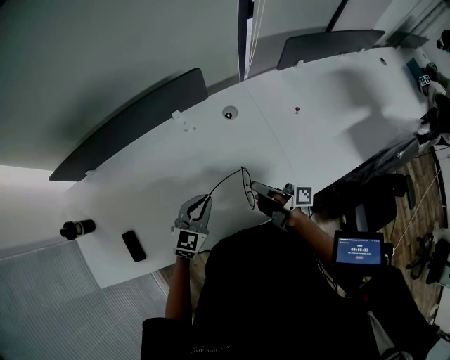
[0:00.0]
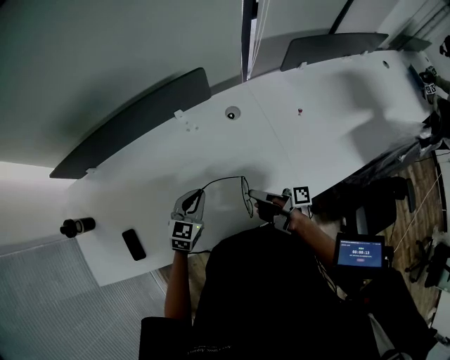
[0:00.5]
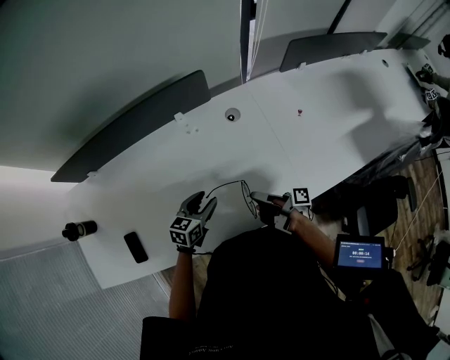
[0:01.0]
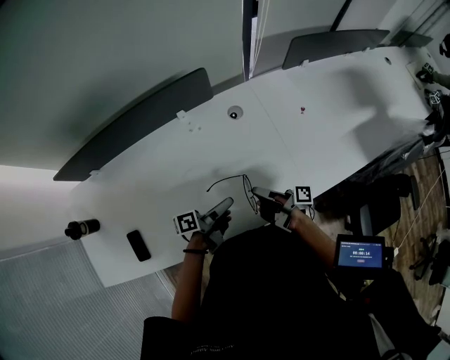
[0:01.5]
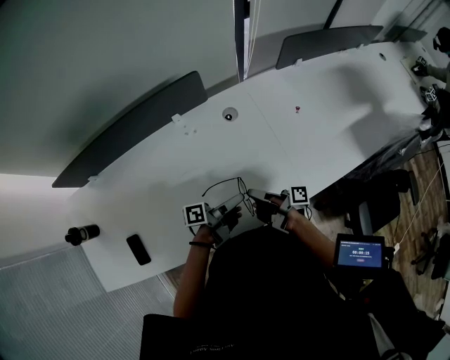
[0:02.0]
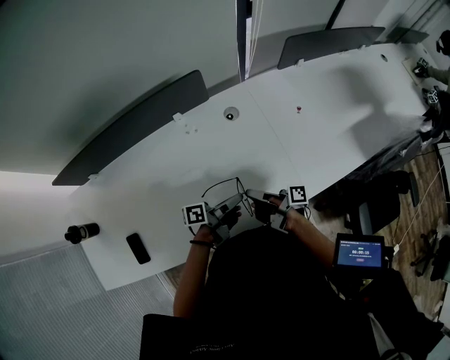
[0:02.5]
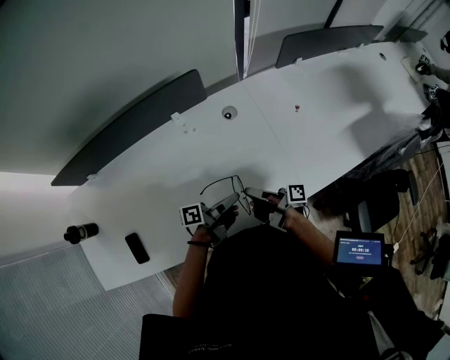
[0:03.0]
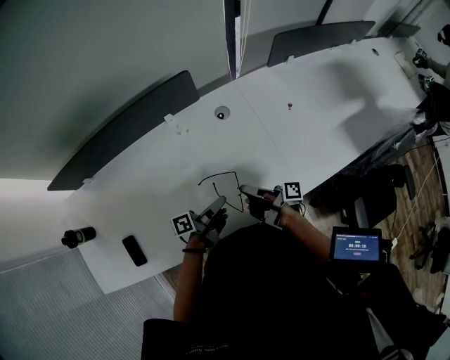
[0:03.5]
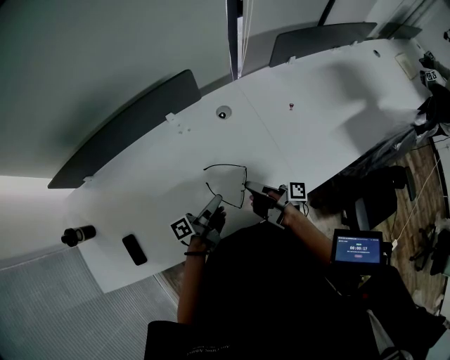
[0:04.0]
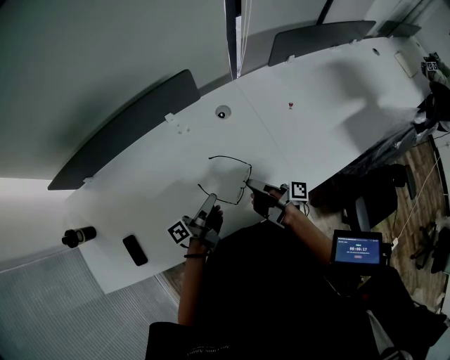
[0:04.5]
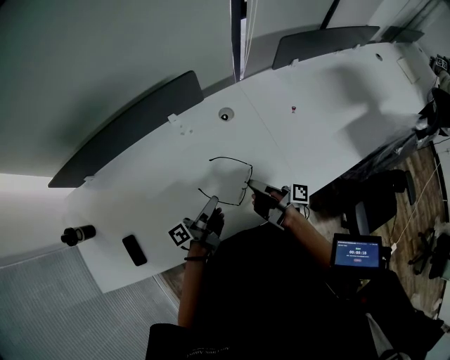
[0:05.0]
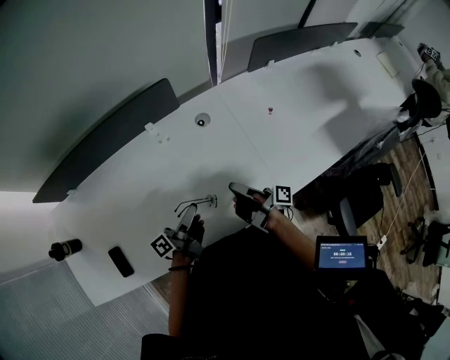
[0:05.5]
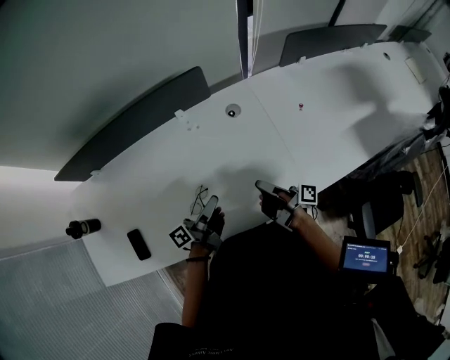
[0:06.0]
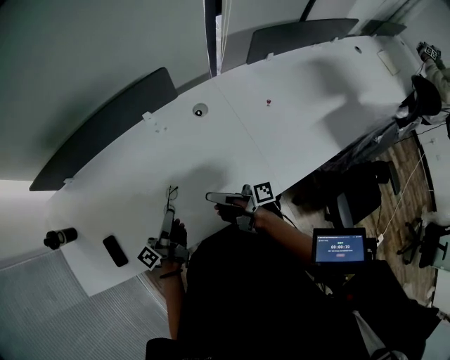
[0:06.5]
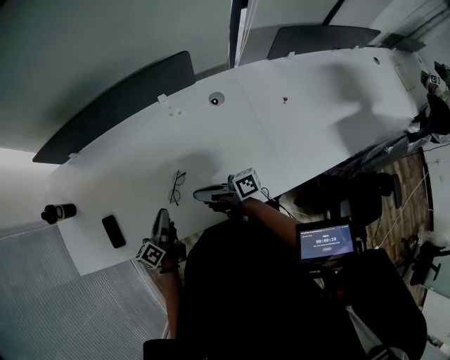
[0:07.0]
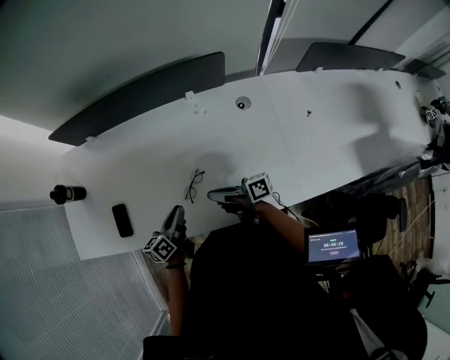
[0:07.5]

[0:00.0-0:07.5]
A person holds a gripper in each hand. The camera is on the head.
0:00.0 to 0:02.0: The left gripper goes roughly 10 cm to the right, rotates around the line of its fingers by some 90 degrees, counterclockwise from behind, and opens up.
0:02.0 to 0:04.0: The left gripper moves to the left, some 5 cm, and closes up.
0:04.0 to 0:05.5: The left gripper opens.
0:05.5 to 0:07.5: The right gripper moves approximately 20 cm, and turns by some 50 degrees. Meanwhile the left gripper ends up roughly 20 cm from where it was, turns by roughly 40 degrees, and closes its fingers.

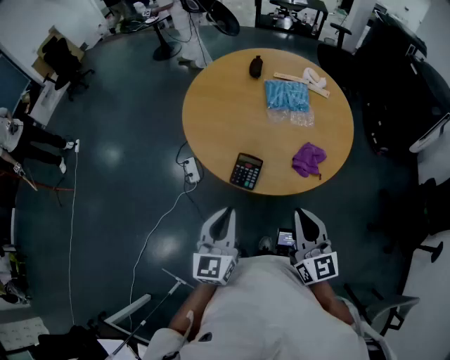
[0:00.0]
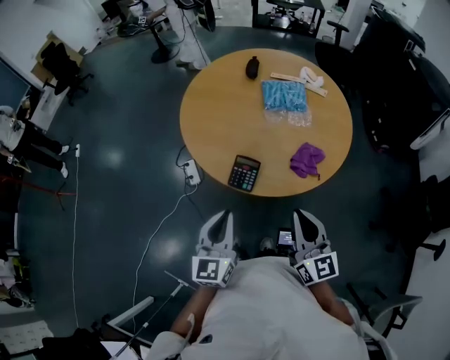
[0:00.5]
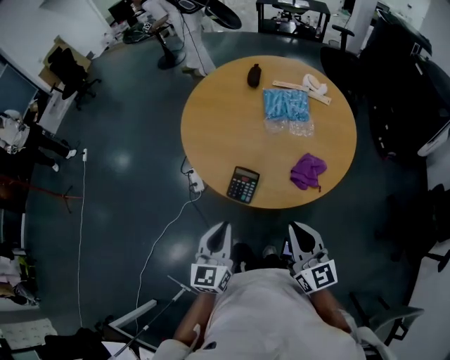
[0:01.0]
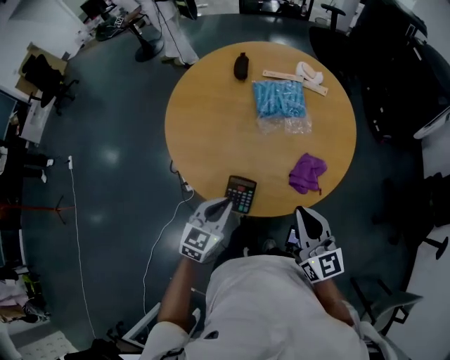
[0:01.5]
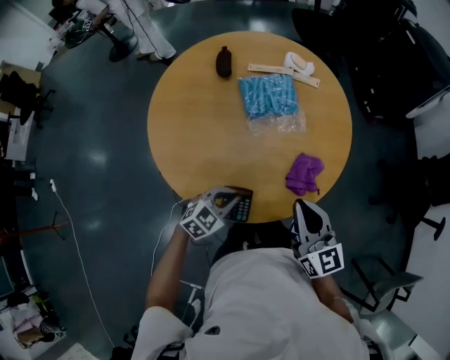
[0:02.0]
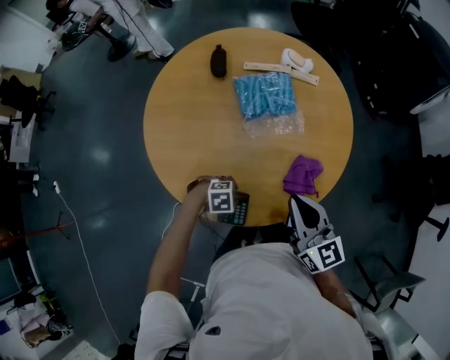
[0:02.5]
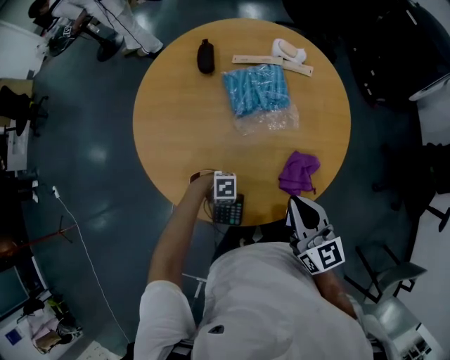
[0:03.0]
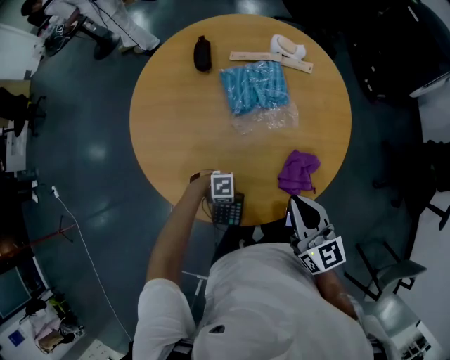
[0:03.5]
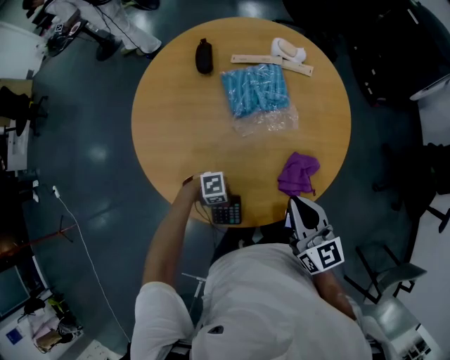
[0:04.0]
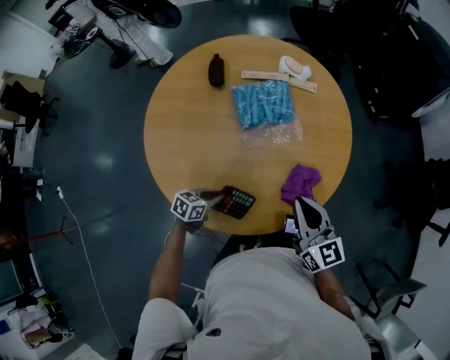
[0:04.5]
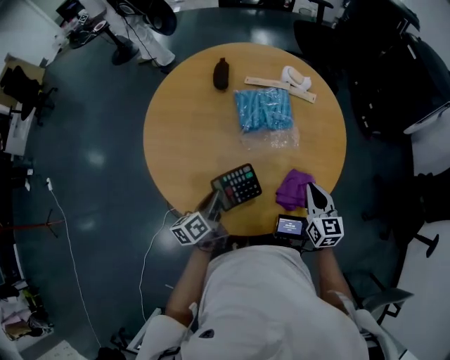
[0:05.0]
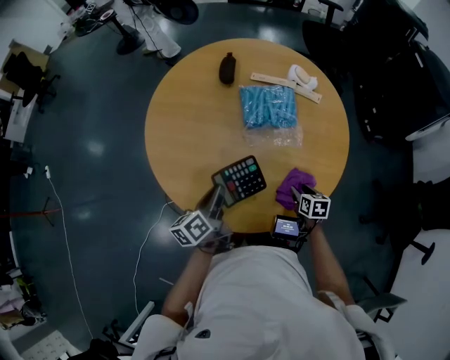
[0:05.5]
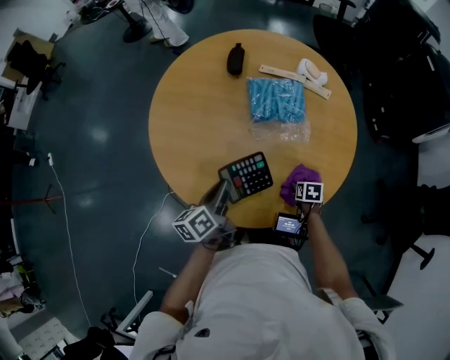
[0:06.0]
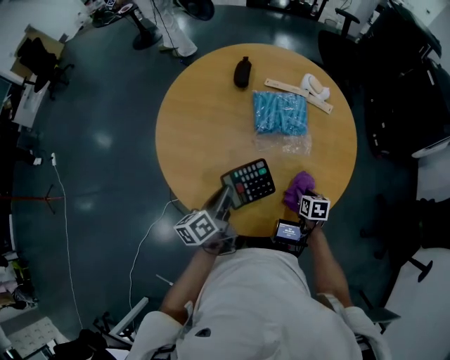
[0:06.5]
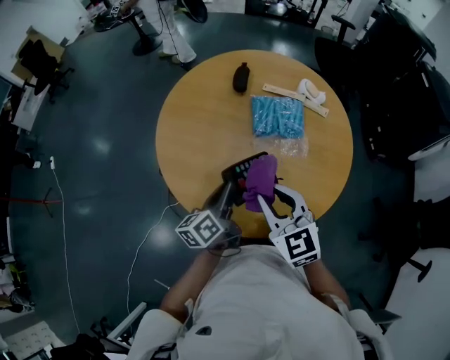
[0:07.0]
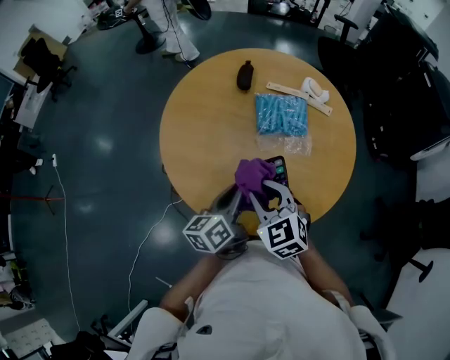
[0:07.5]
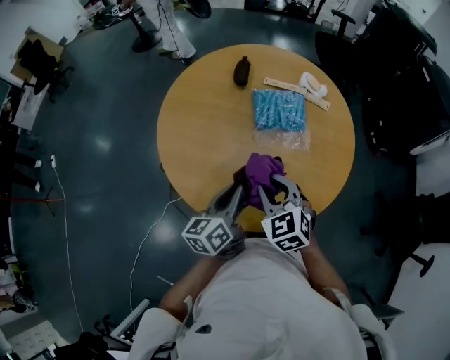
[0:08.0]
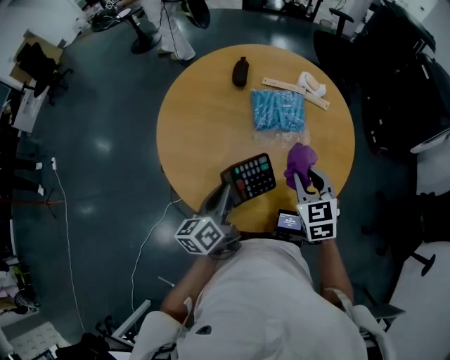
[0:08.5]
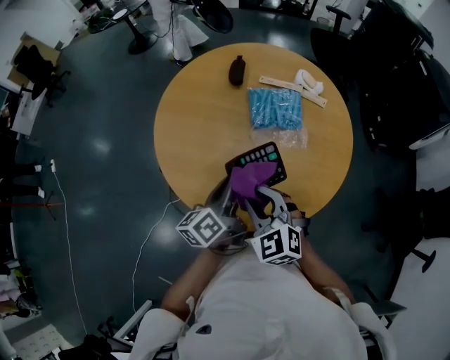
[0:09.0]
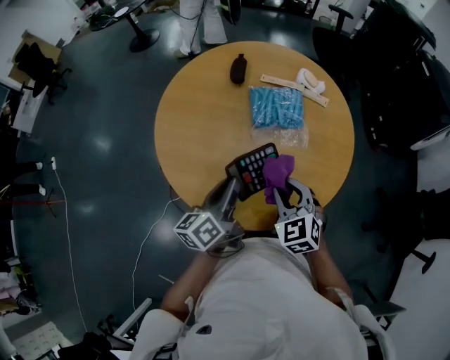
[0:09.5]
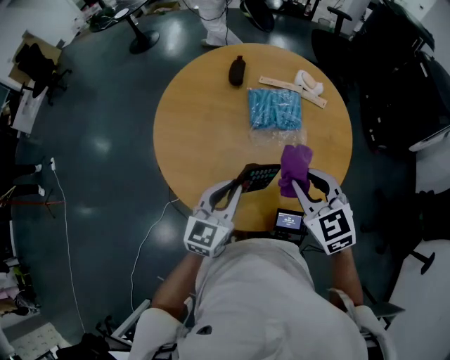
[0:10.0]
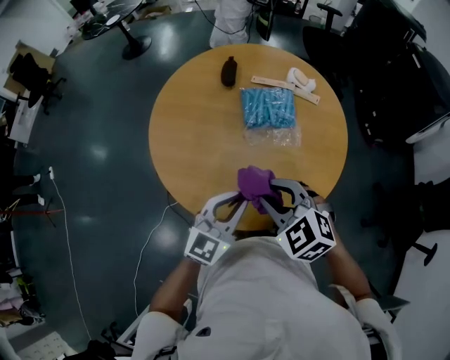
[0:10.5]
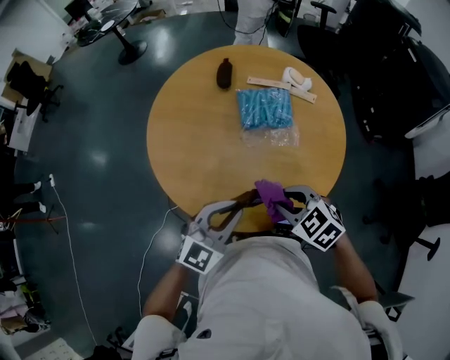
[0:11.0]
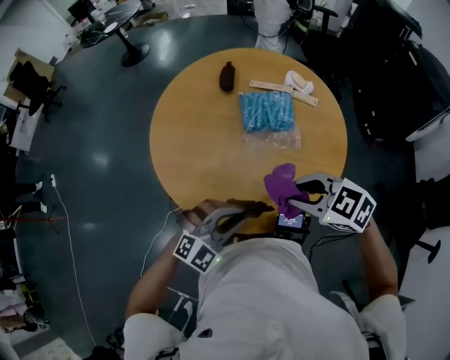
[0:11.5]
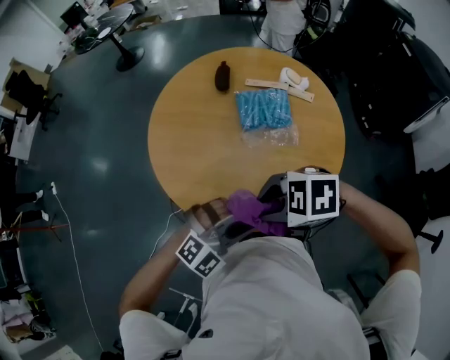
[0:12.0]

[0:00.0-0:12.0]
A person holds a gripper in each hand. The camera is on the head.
0:00.0 to 0:02.0: The right gripper moves some 20 cm. Meanwhile the left gripper changes place by about 30 cm, and tilts its fingers approximately 30 degrees downward.
0:02.0 to 0:04.0: The left gripper heads downward, covering about 15 cm, rotates about 50 degrees, and opens, then closes again. Meanwhile the right gripper moves about 10 cm.
0:04.0 to 0:06.0: The left gripper goes roughly 15 cm upward, and tilts its fingers roughly 30 degrees upward. The right gripper goes approximately 30 cm downward, angles its fingers downward, by about 60 degrees, and opens.
0:06.0 to 0:08.0: The right gripper heads upward and to the left, covering some 35 cm, twists about 50 degrees counterclockwise, seen from behind, and closes its fingers. The left gripper is displaced upward by approximately 10 cm.
0:08.0 to 0:10.0: The left gripper twists about 40 degrees clockwise, seen from behind, while the right gripper goes left and right, about 15 cm each way, reversing 2 times.
0:10.0 to 0:12.0: The left gripper moves some 15 cm, and rolls clockwise, seen from behind, by some 60 degrees; the right gripper moves some 15 cm, and turns by about 60 degrees.

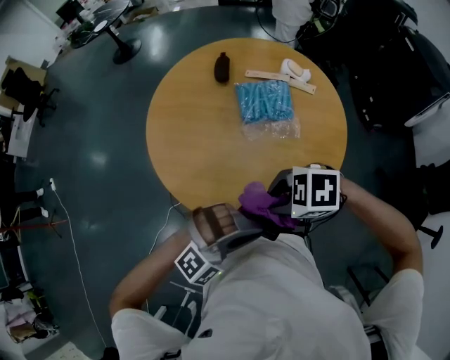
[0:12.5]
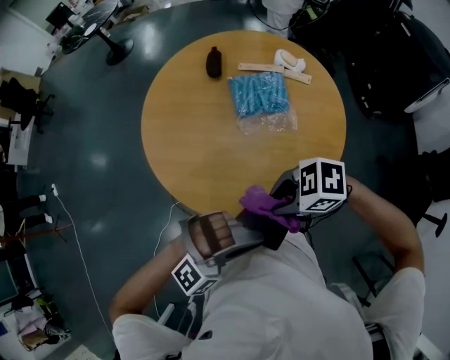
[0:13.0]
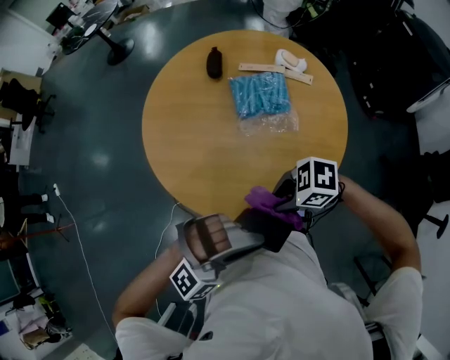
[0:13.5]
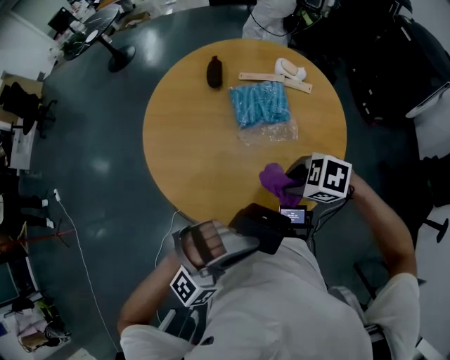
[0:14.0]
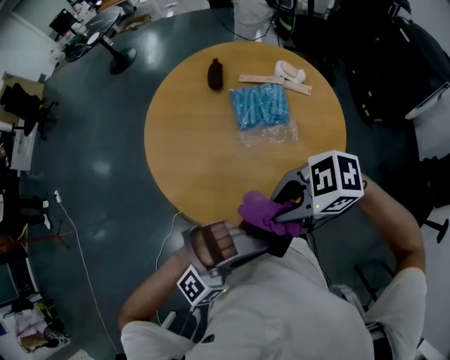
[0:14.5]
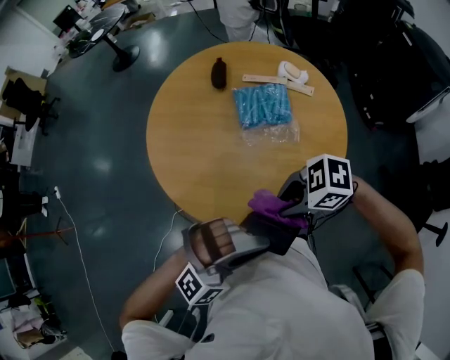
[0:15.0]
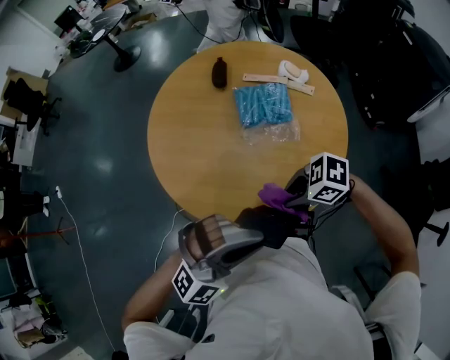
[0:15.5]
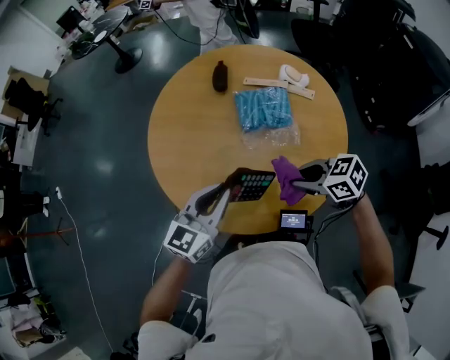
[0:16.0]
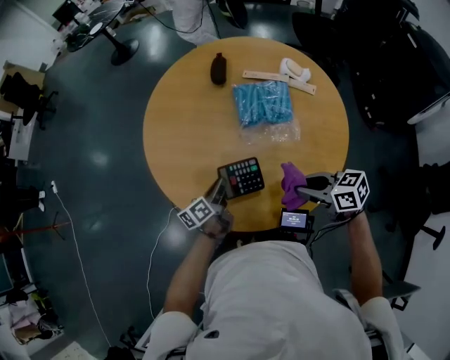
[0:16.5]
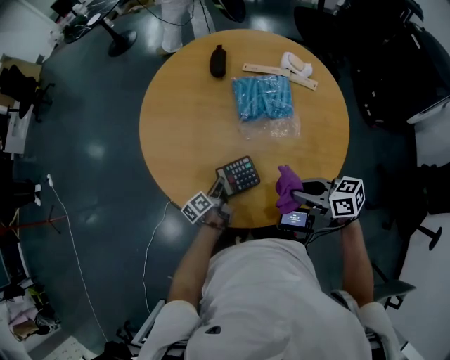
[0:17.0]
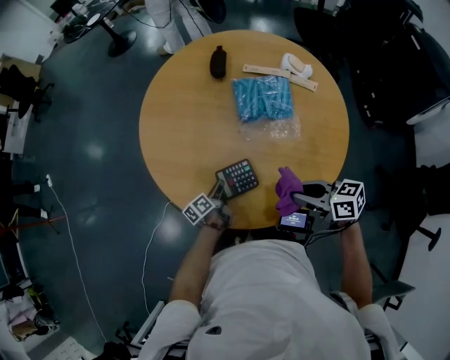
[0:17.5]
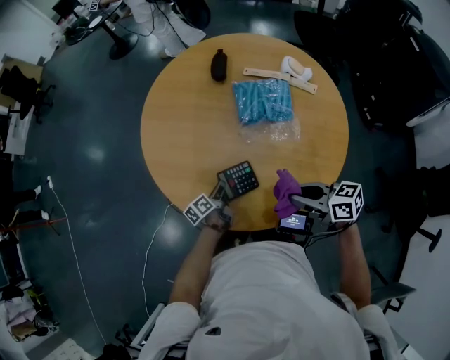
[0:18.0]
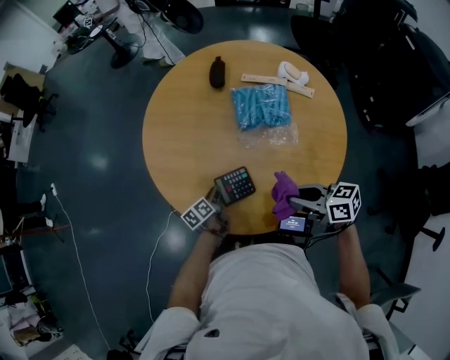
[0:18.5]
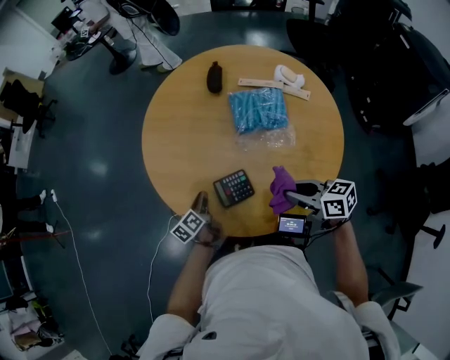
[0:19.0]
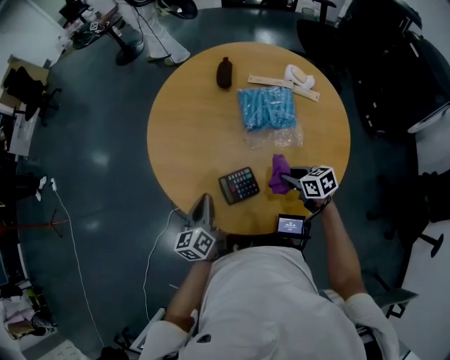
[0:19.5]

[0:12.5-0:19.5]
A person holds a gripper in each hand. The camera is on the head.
0:12.5 to 0:14.5: Both grippers move upward, approximately 5 cm.
0:14.5 to 0:16.0: The right gripper changes place by roughly 15 cm, and turns by about 40 degrees, while the left gripper shifts by approximately 20 cm, and rolls counterclockwise, seen from behind, by some 80 degrees.
0:16.0 to 0:17.5: The right gripper ends up roughly 5 cm from where it was, and changes its angle by some 20 degrees. Meanwhile the left gripper heads downward, covering some 35 cm, and twists some 70 degrees counterclockwise, seen from behind.
0:17.5 to 0:19.5: The right gripper shifts roughly 15 cm downward and forward. Meanwhile the left gripper goes roughly 20 cm upward, and swivels approximately 40 degrees.
